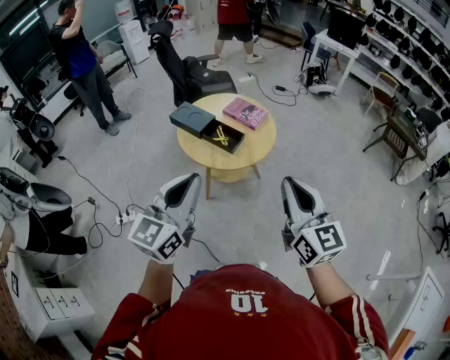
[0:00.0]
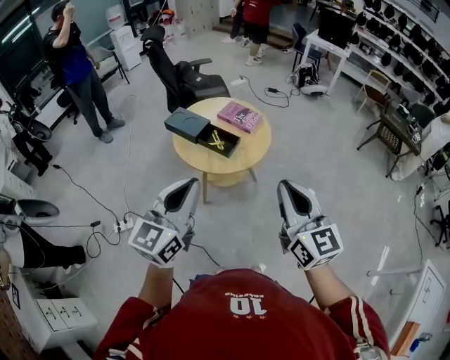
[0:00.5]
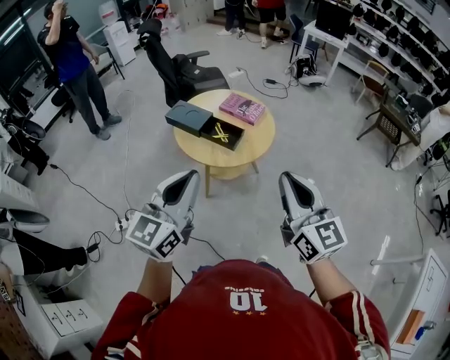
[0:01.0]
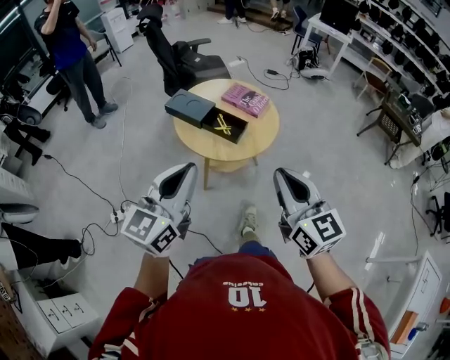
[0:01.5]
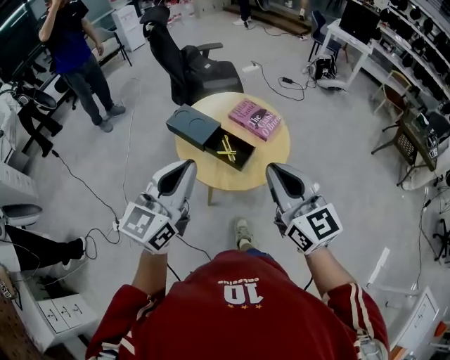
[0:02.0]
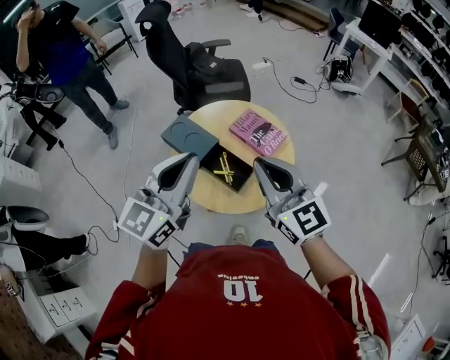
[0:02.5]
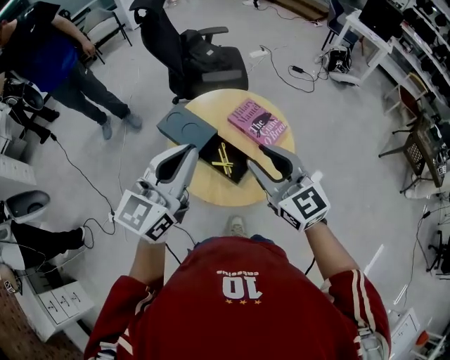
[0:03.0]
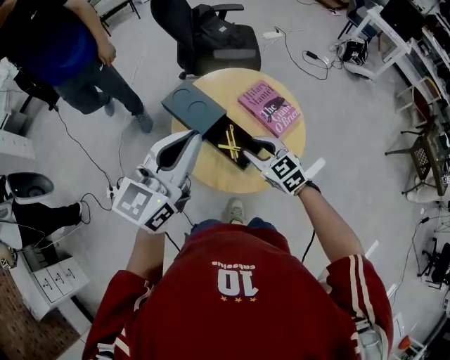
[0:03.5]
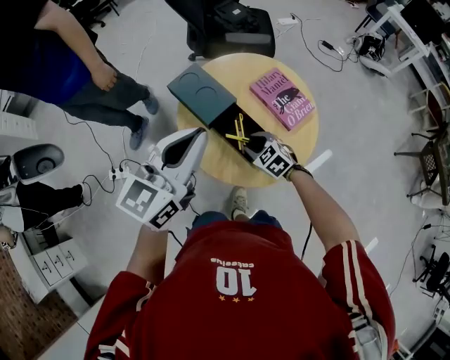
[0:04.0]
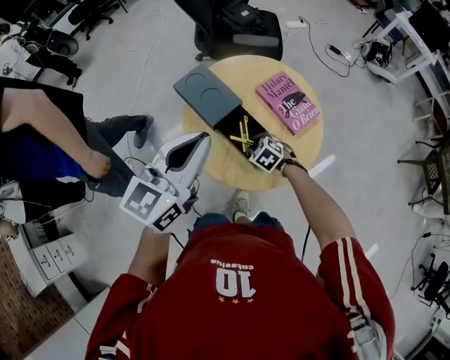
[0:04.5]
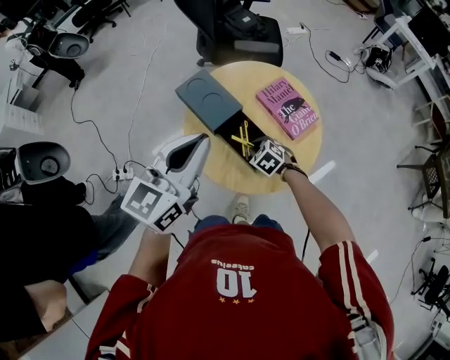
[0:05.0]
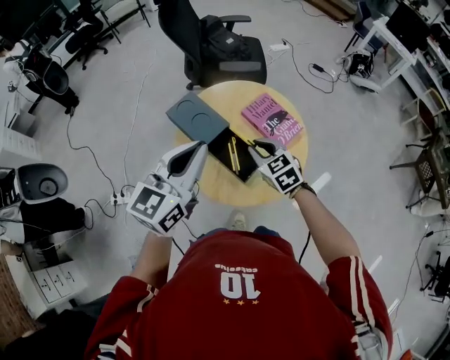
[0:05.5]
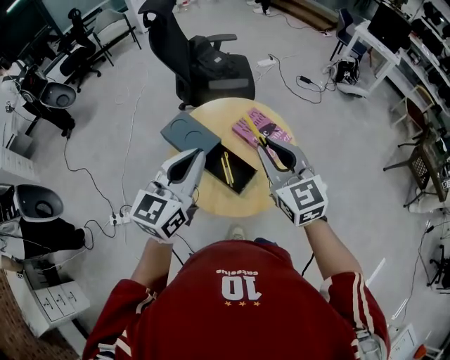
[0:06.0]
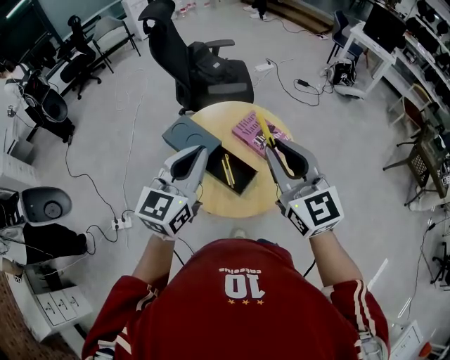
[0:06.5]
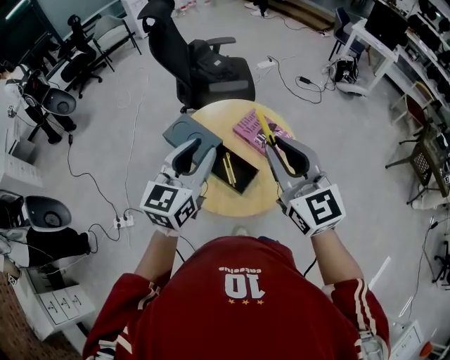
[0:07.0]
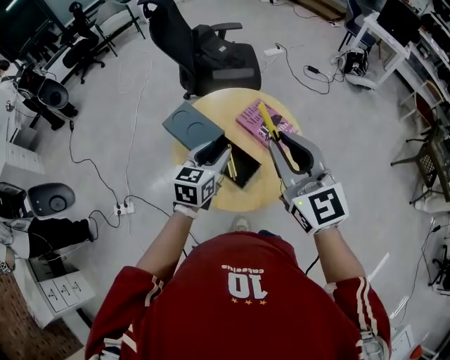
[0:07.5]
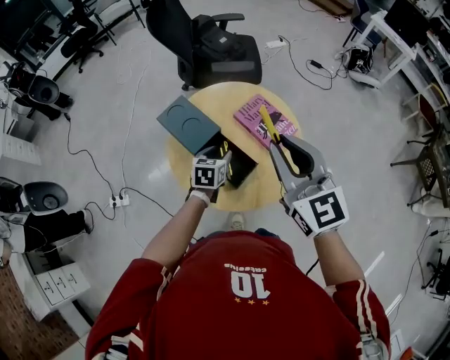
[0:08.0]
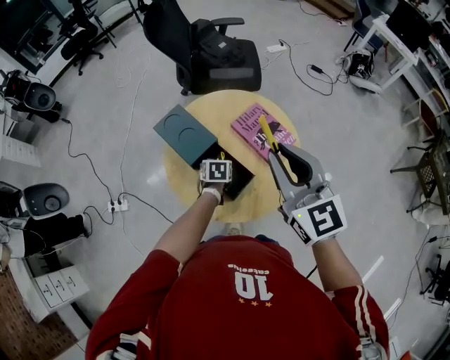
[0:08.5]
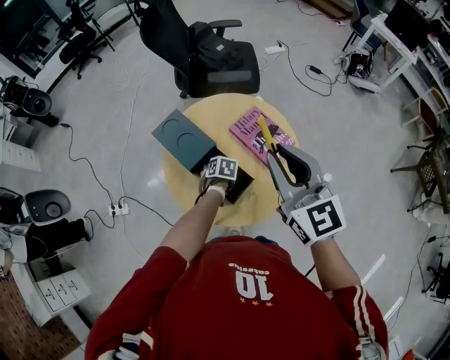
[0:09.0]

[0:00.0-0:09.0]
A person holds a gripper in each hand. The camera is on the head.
0:00.0 to 0:02.0: The left gripper is displaced forward by about 20 cm. The right gripper shifts some 20 cm forward and to the left.
0:02.0 to 0:04.5: The right gripper is displaced downward and forward by some 50 cm, tips its fingers downward by some 60 degrees, and opens. Meanwhile the left gripper heads forward and downward, covering about 20 cm.
0:04.5 to 0:07.0: The right gripper goes some 50 cm upward, and points its fingers approximately 60 degrees further upward. Meanwhile the left gripper shifts by approximately 5 cm, and opens up.
0:07.0 to 0:09.0: The right gripper shifts by about 10 cm. The left gripper travels downward by roughly 40 cm, and angles its fingers downward, by approximately 70 degrees.

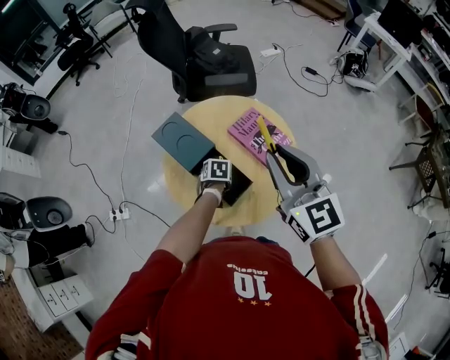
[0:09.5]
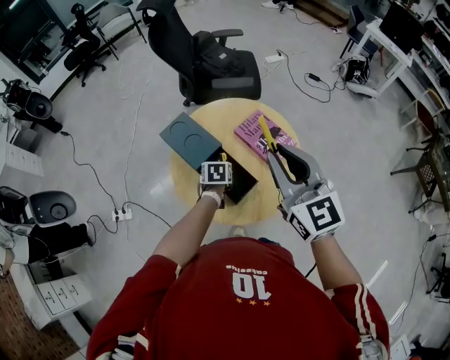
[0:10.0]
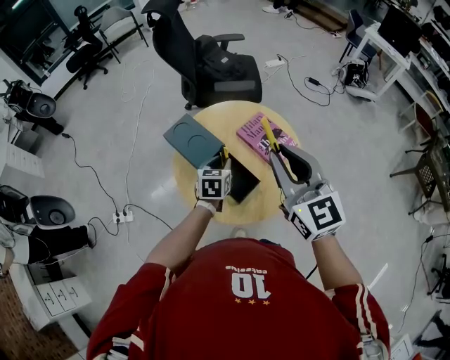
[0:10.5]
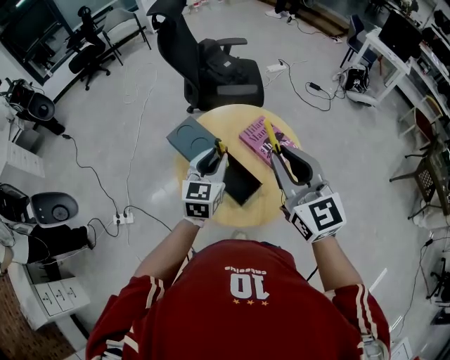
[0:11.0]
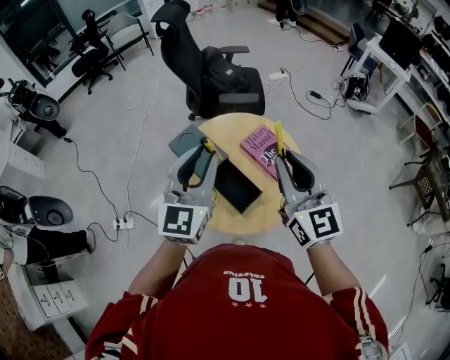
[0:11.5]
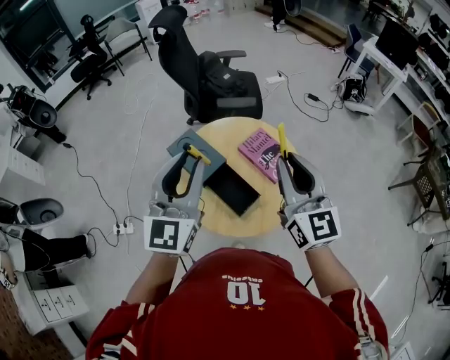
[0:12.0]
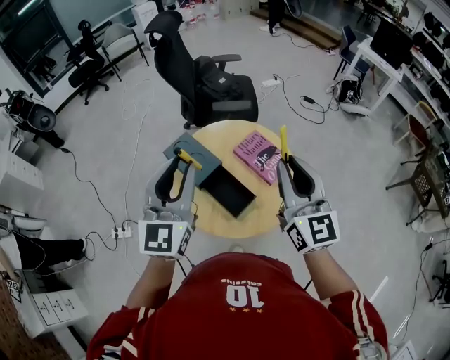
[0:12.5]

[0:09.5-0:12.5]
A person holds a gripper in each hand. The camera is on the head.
0:09.5 to 0:11.0: The left gripper heads upward, covering some 30 cm, and angles its fingers upward, by about 50 degrees.
0:11.0 to 0:12.5: The left gripper moves upward, roughly 20 cm, and turns by roughly 20 degrees.

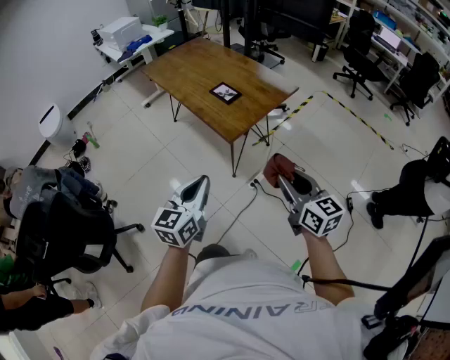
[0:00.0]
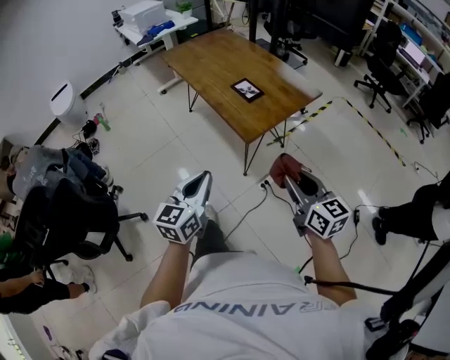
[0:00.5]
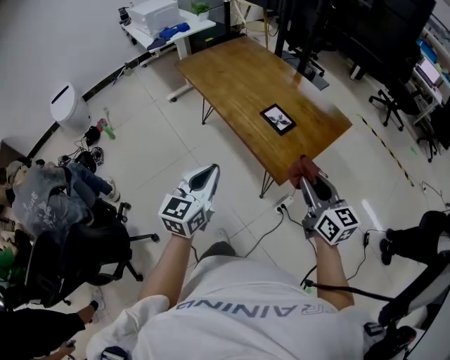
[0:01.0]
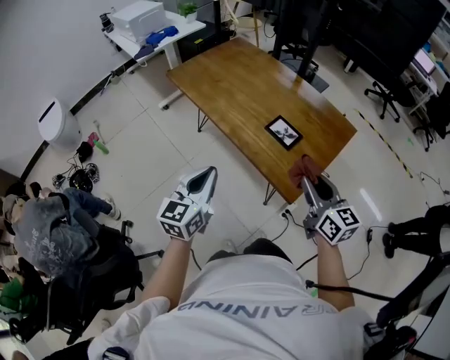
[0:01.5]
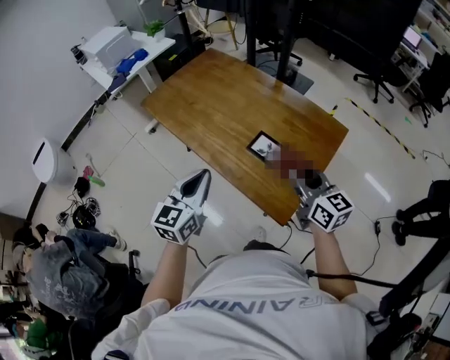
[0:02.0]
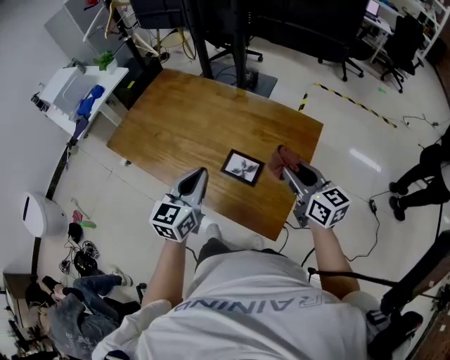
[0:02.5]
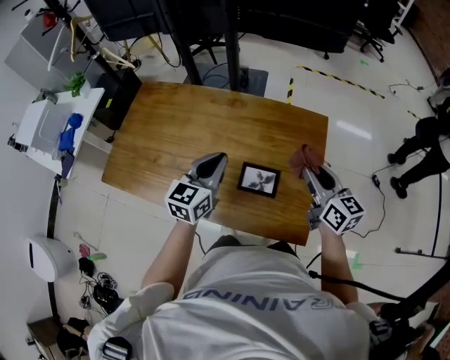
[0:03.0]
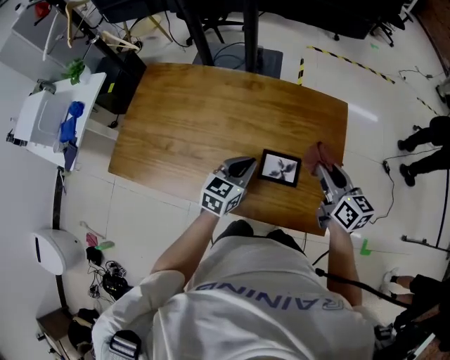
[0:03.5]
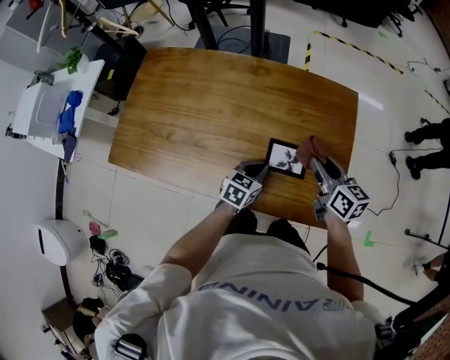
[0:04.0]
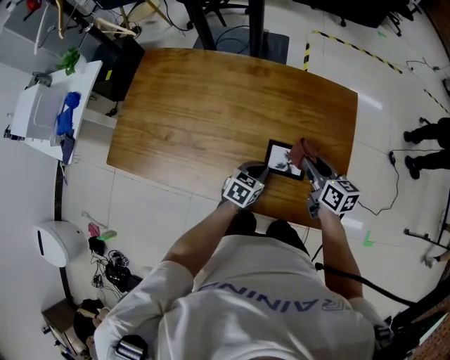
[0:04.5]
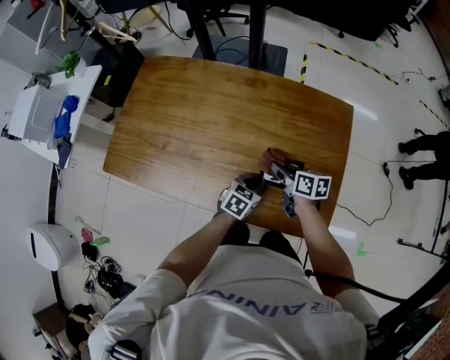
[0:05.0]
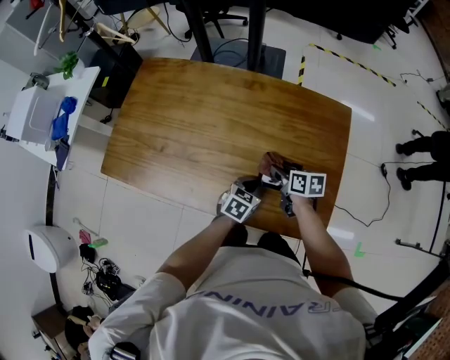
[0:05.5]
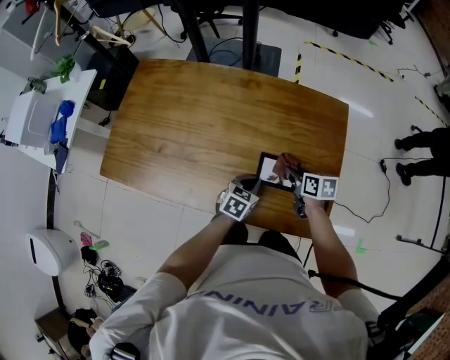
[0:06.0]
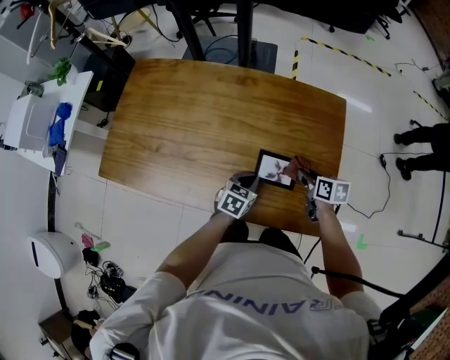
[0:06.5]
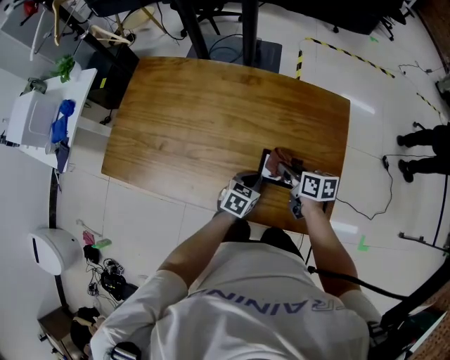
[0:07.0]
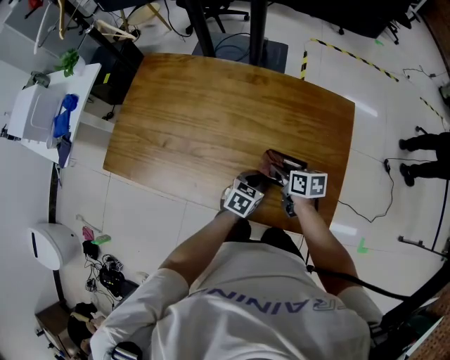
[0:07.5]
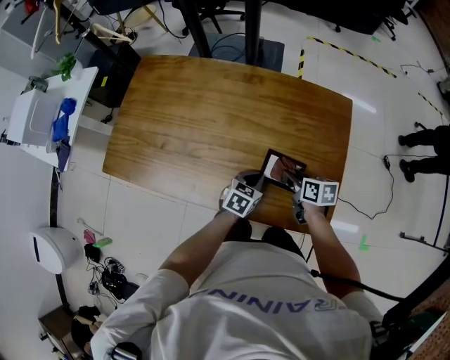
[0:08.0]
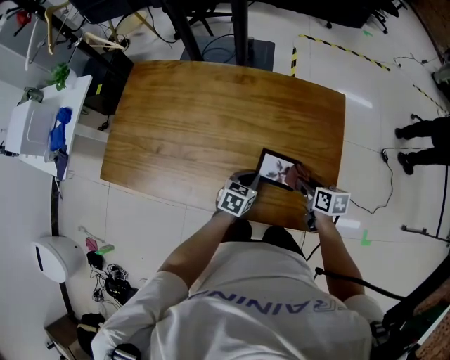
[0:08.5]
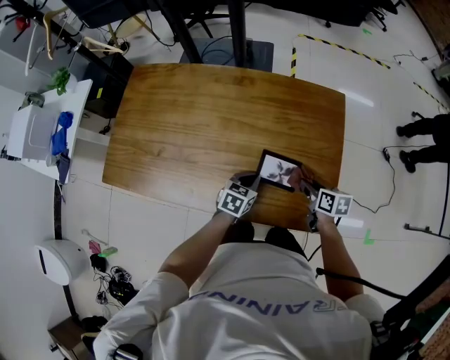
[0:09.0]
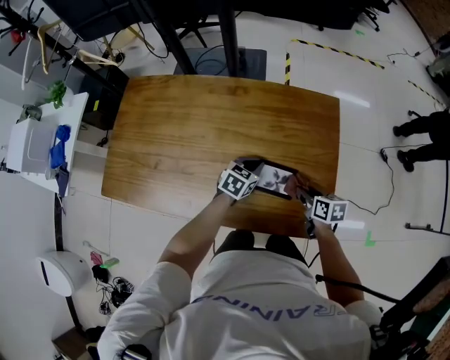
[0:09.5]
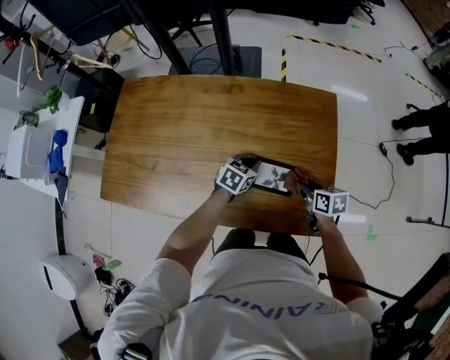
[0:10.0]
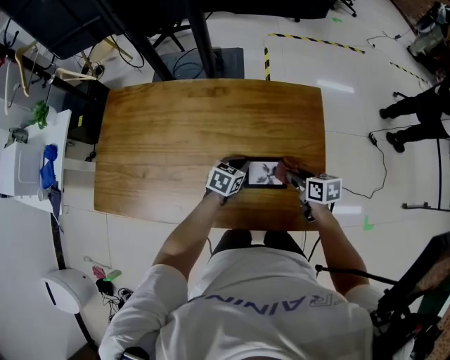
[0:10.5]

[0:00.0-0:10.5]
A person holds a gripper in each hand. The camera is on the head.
0:00.0 to 0:02.0: The two grippers travel together, forward, about 50 cm.
0:02.0 to 0:04.0: The right gripper ends up some 20 cm from where it was, and swivels about 40 degrees; the left gripper goes about 25 cm downward, and swivels approximately 50 degrees.
0:04.0 to 0:06.5: The right gripper moves downward, some 15 cm, and swivels some 30 degrees.
0:06.5 to 0:08.5: The right gripper reaches approximately 15 cm to the left, then returns.
0:08.5 to 0:10.5: The left gripper heads forward, covering about 10 cm.

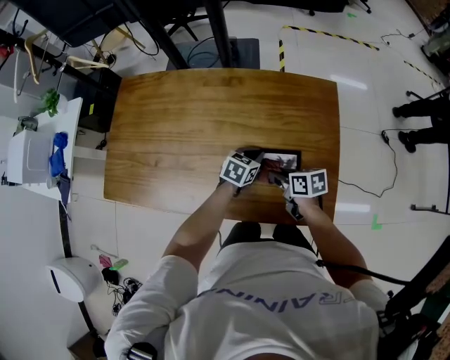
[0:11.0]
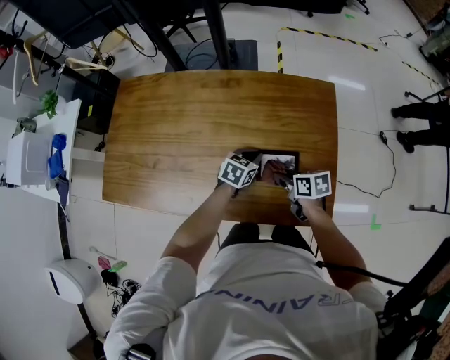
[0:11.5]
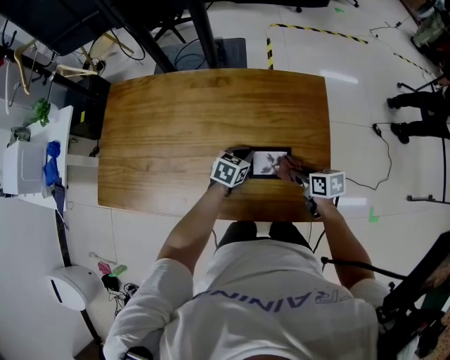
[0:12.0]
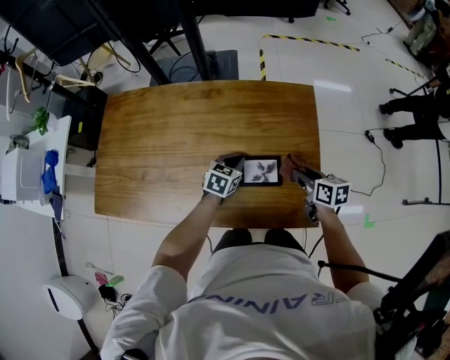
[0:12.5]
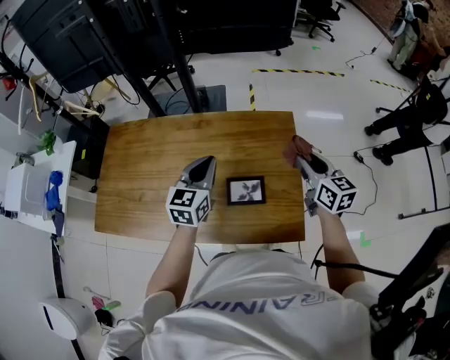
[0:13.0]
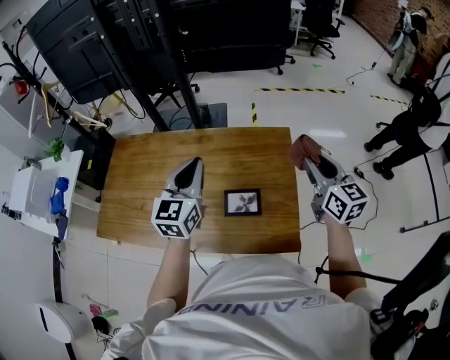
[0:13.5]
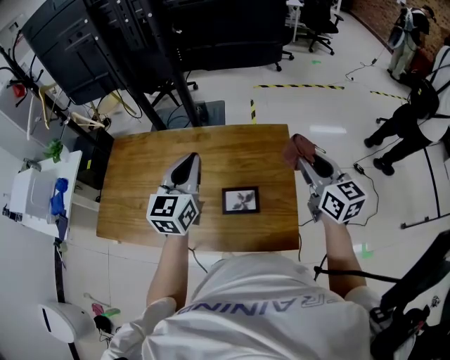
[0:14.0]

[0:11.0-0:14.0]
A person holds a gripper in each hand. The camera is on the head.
0:11.0 to 0:12.5: The right gripper shifts some 15 cm to the right.
0:12.5 to 0:14.0: The two grippers go some 30 cm upward. The left gripper tips its fingers upward by some 40 degrees; the right gripper rotates approximately 40 degrees.

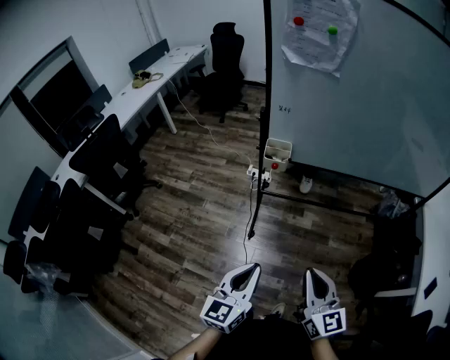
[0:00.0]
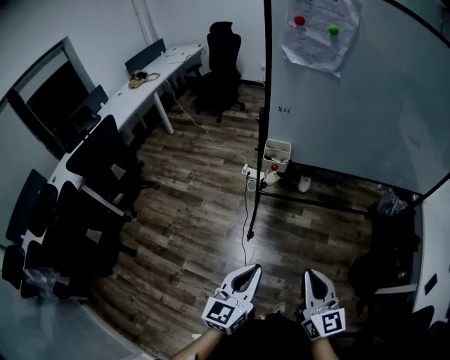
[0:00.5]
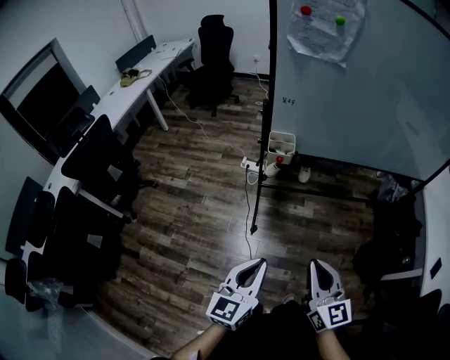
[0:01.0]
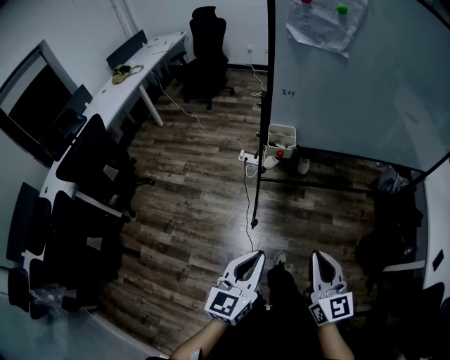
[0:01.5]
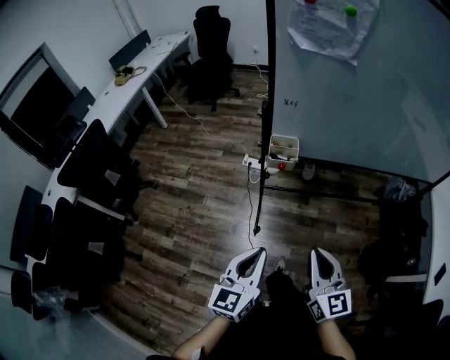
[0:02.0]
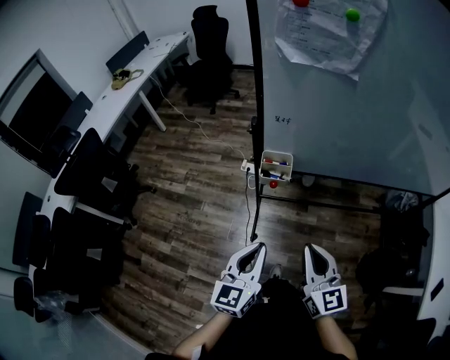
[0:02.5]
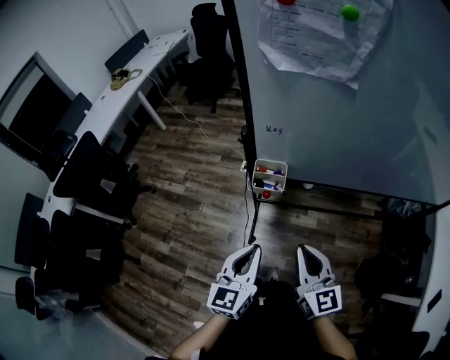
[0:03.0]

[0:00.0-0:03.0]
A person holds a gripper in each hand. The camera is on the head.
0:00.0 to 0:01.5: The two grippers go about 5 cm to the left.
0:01.5 to 0:03.0: Both grippers move forward, approximately 20 cm.
